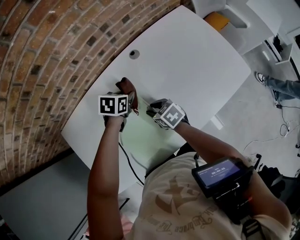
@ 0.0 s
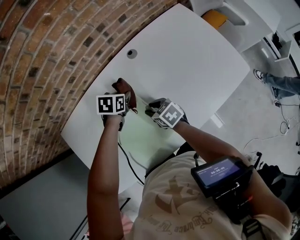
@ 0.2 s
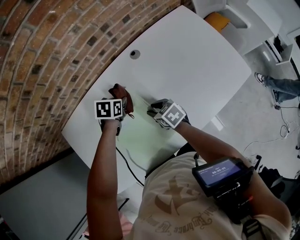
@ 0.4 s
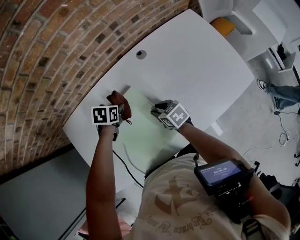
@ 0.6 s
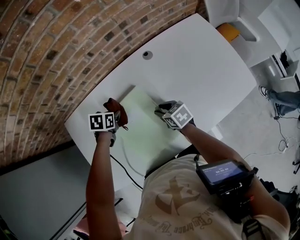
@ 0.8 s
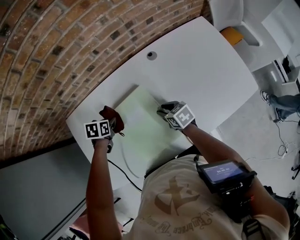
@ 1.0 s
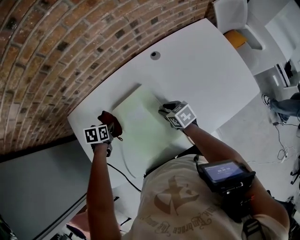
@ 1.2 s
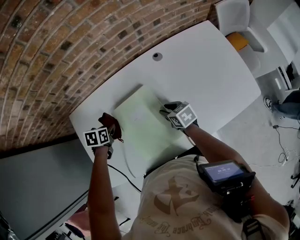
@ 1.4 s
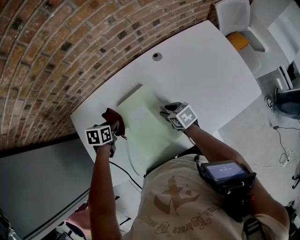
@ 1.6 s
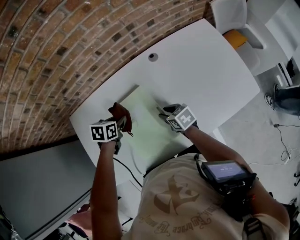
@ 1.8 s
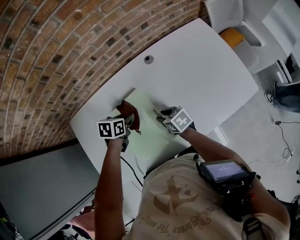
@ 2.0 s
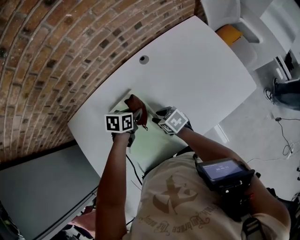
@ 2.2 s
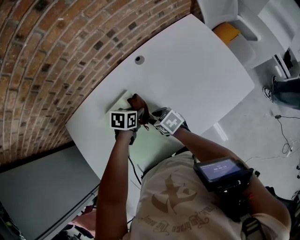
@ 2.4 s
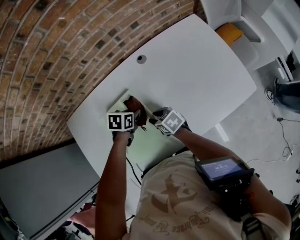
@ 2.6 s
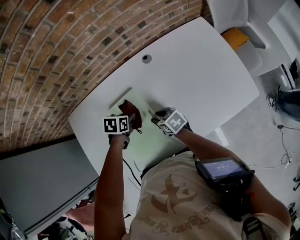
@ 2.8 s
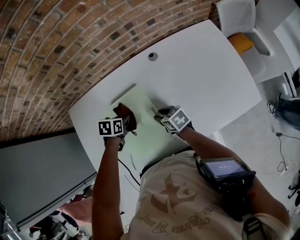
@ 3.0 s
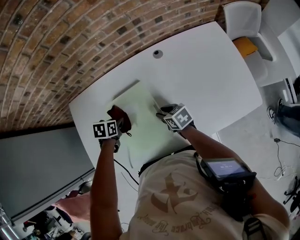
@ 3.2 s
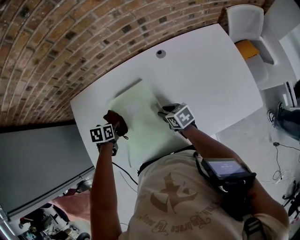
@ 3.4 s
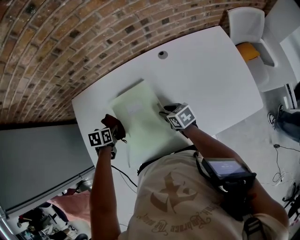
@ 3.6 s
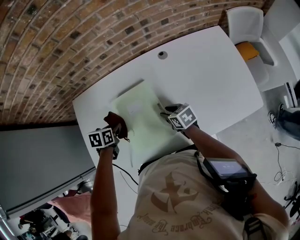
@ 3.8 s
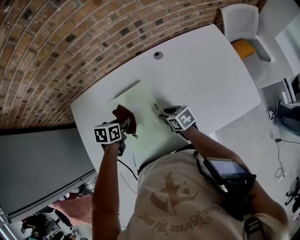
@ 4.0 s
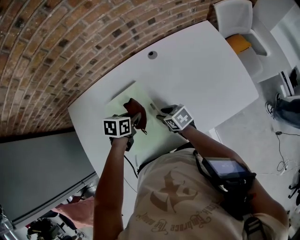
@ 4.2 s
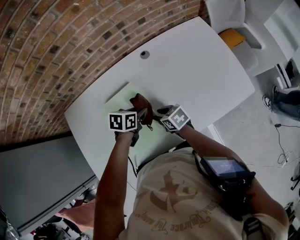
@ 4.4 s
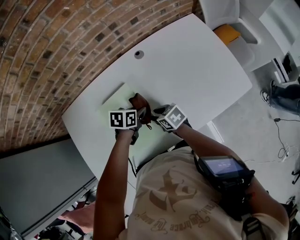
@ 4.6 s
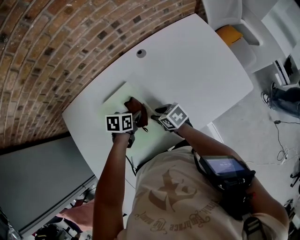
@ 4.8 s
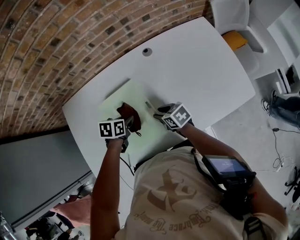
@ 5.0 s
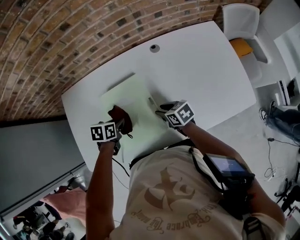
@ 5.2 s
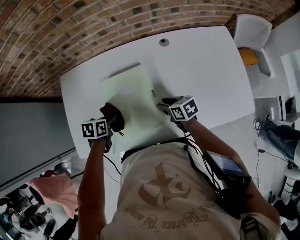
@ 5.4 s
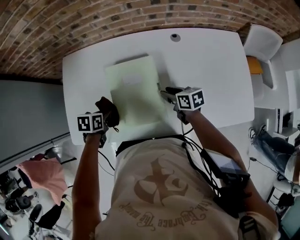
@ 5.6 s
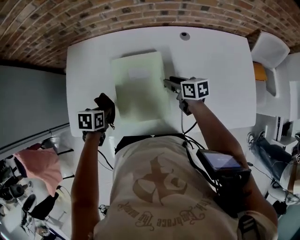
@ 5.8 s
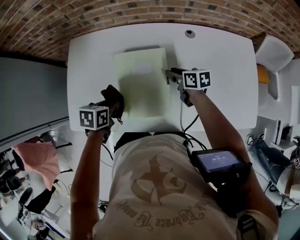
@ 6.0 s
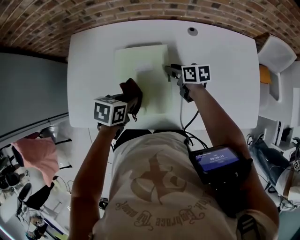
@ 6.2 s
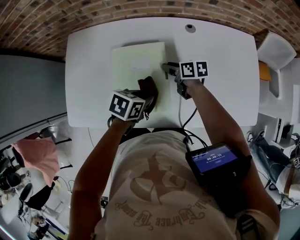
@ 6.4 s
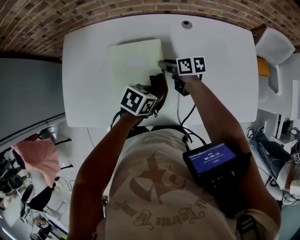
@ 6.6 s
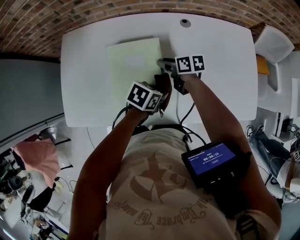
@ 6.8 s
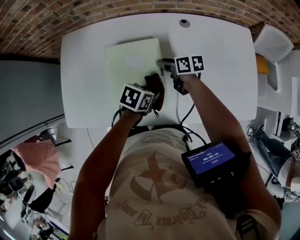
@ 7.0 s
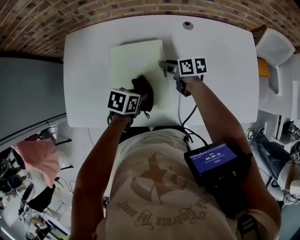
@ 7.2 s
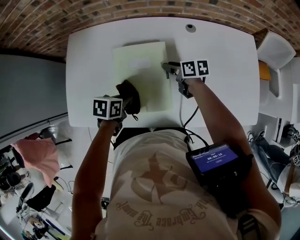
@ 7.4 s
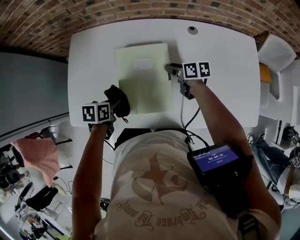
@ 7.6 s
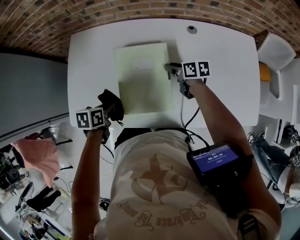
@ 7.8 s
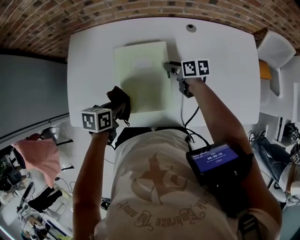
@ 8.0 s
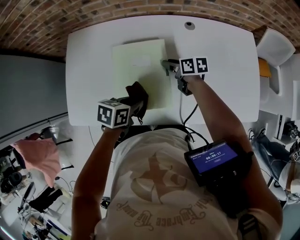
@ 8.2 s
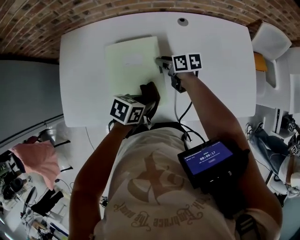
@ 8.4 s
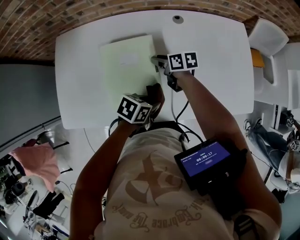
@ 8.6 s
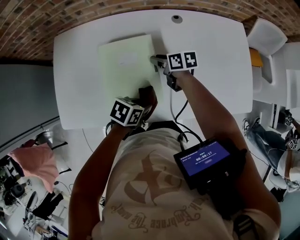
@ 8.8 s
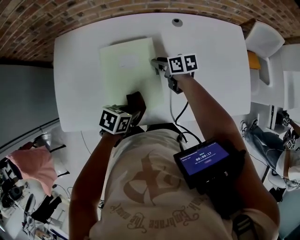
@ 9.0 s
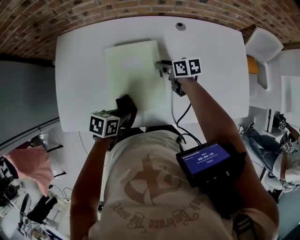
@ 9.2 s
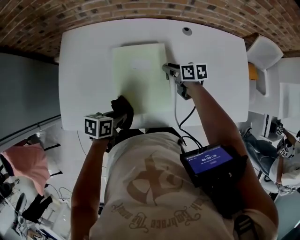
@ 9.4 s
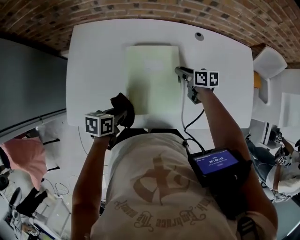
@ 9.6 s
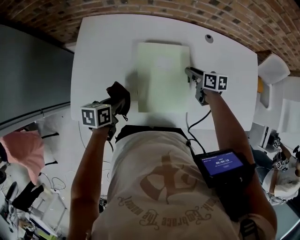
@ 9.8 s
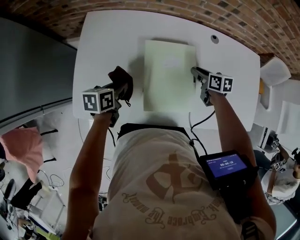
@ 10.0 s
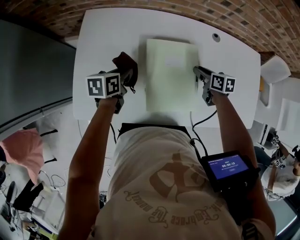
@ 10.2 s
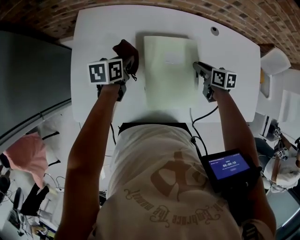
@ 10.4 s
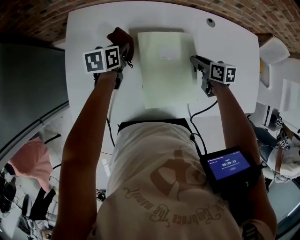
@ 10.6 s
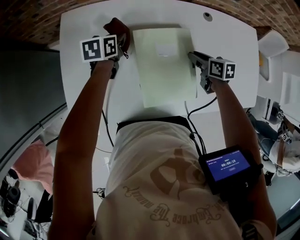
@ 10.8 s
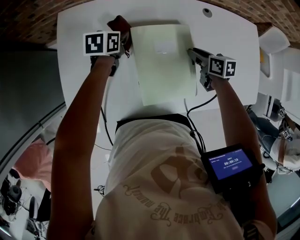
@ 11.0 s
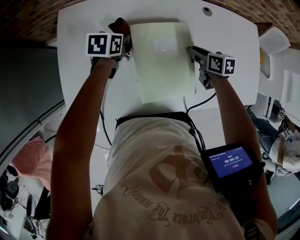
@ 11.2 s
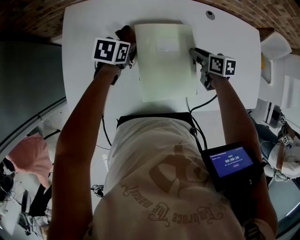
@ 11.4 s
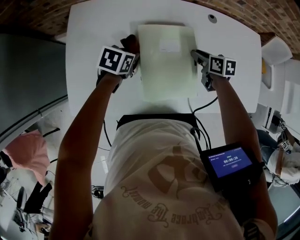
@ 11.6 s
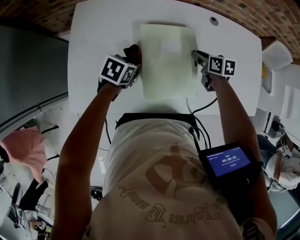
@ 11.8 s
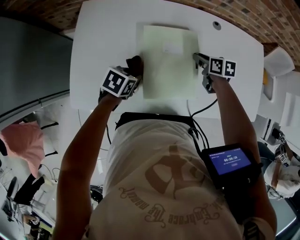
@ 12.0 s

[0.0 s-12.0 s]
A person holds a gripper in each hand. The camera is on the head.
0.0 to 1.6 s: The left gripper is displaced to the left and backward by some 20 cm, and turns by approximately 20 degrees.
3.0 to 4.4 s: The left gripper shifts by roughly 15 cm.
4.4 to 6.0 s: The left gripper moves roughly 20 cm, and swivels some 30 degrees. The right gripper shifts by roughly 10 cm.
7.6 to 9.0 s: The left gripper swivels some 30 degrees.
9.0 to 10.4 s: The left gripper shifts by about 30 cm, and changes its angle by roughly 30 degrees.
10.4 to 12.0 s: The left gripper is displaced backward and to the right by some 15 cm, and rotates about 30 degrees.

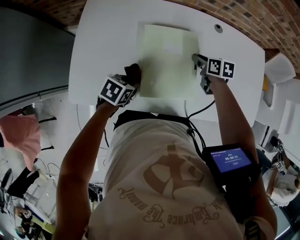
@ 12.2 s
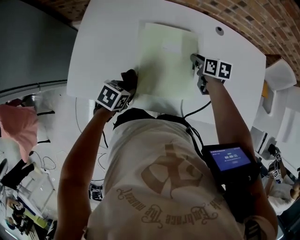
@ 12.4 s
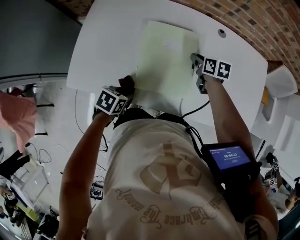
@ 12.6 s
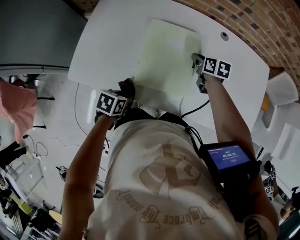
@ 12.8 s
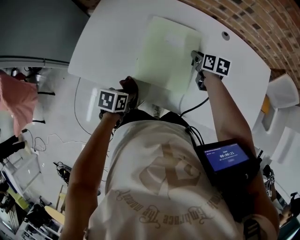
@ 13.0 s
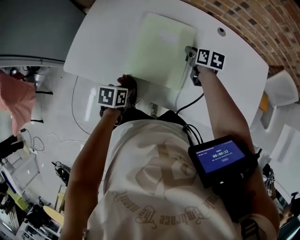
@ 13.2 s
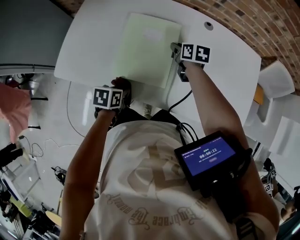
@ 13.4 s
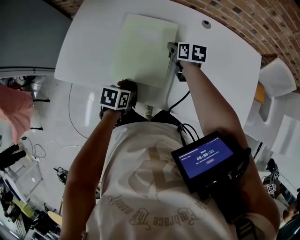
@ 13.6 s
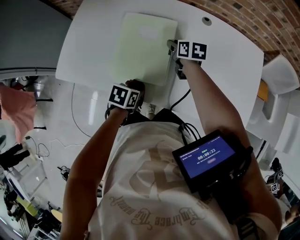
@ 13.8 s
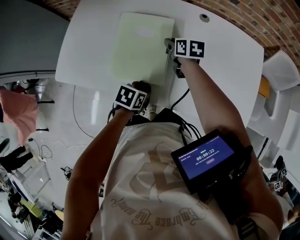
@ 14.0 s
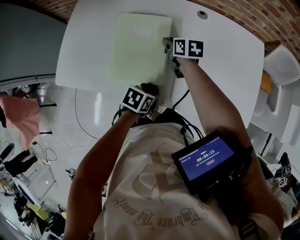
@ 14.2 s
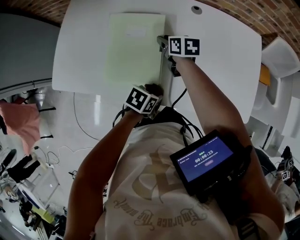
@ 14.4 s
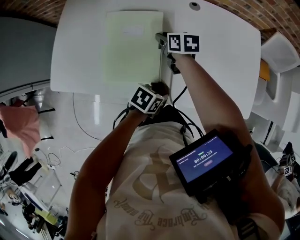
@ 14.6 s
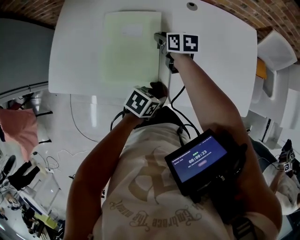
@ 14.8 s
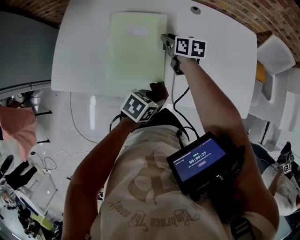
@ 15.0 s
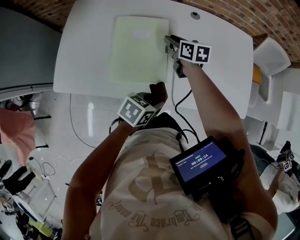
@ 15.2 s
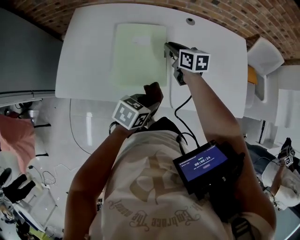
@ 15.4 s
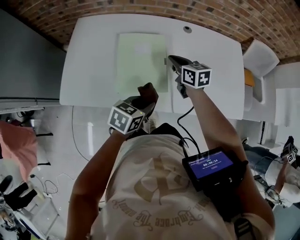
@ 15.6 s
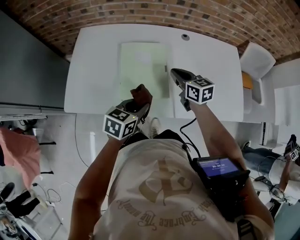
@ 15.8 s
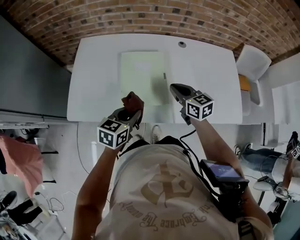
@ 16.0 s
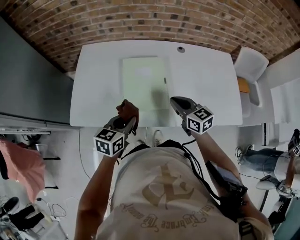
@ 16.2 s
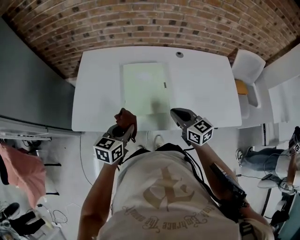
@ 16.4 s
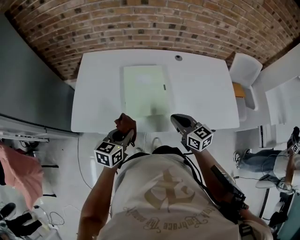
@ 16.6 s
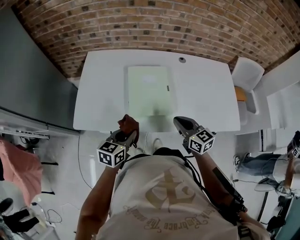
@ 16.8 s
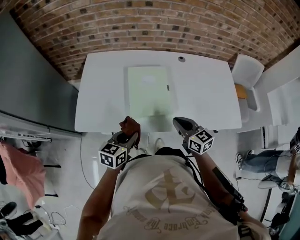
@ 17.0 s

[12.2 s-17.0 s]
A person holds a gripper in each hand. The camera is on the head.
12.2 to 13.8 s: The left gripper heads to the right and backward, covering some 20 cm, and swivels roughly 20 degrees.
13.8 to 15.4 s: Both grippers travel together upward, approximately 5 cm. The left gripper turns by some 30 degrees.
15.4 to 17.0 s: The right gripper travels backward by about 25 cm. The left gripper heads to the left, covering approximately 15 cm, and turns by about 20 degrees.

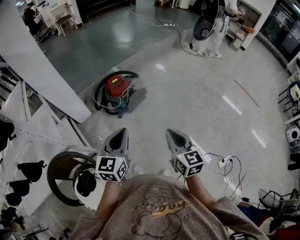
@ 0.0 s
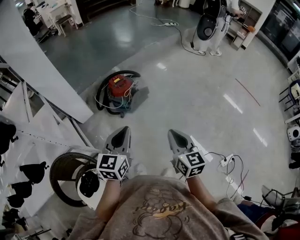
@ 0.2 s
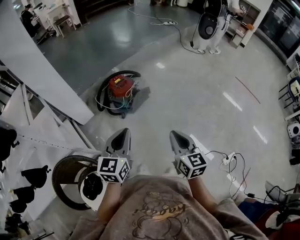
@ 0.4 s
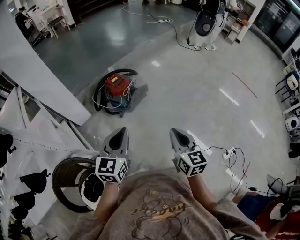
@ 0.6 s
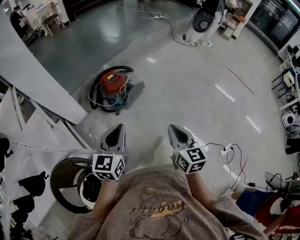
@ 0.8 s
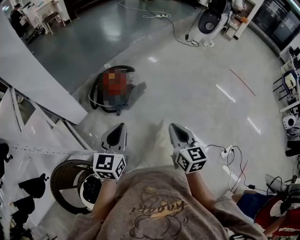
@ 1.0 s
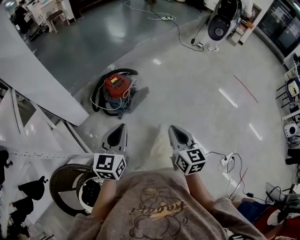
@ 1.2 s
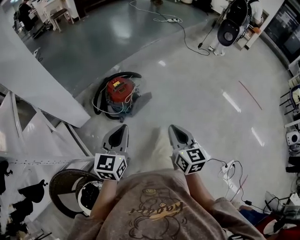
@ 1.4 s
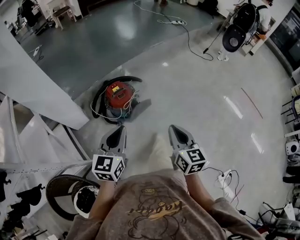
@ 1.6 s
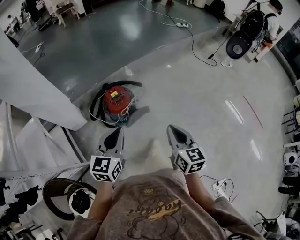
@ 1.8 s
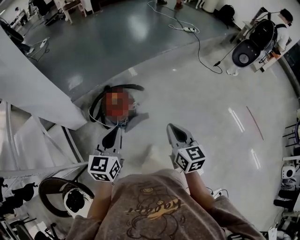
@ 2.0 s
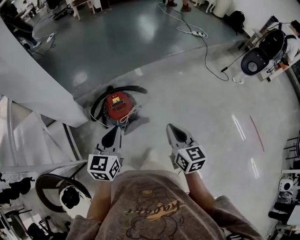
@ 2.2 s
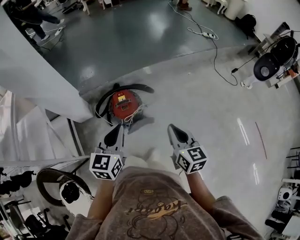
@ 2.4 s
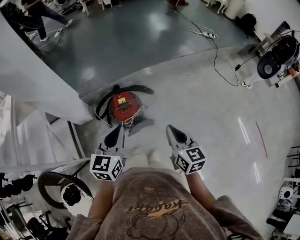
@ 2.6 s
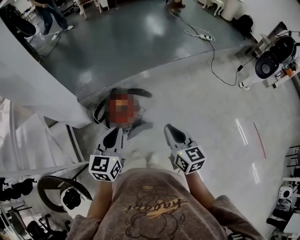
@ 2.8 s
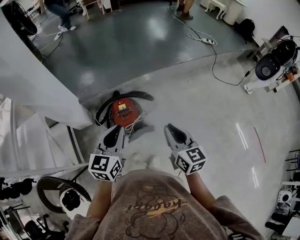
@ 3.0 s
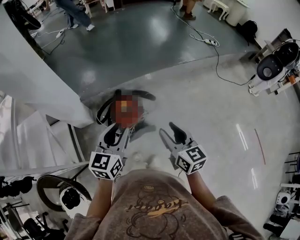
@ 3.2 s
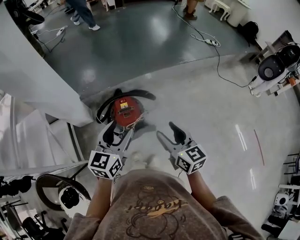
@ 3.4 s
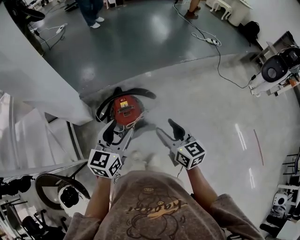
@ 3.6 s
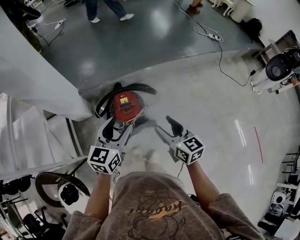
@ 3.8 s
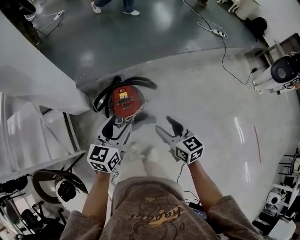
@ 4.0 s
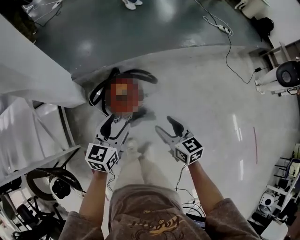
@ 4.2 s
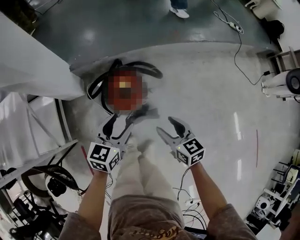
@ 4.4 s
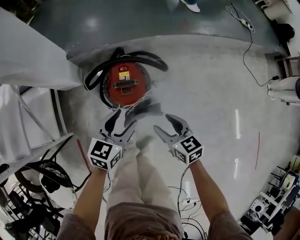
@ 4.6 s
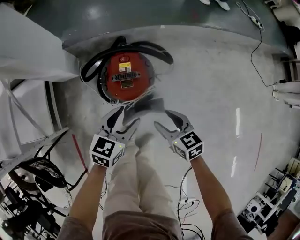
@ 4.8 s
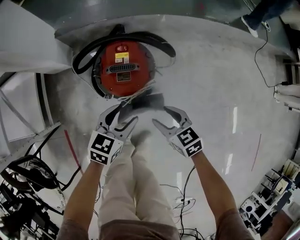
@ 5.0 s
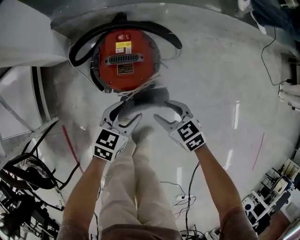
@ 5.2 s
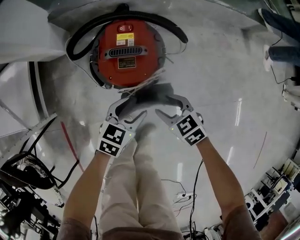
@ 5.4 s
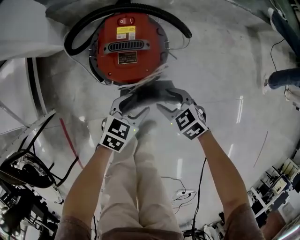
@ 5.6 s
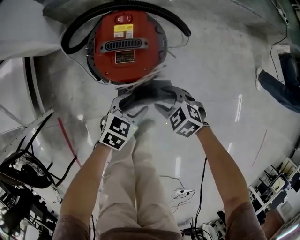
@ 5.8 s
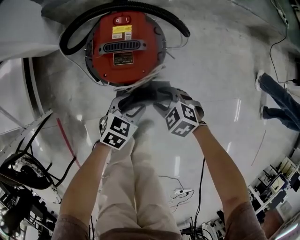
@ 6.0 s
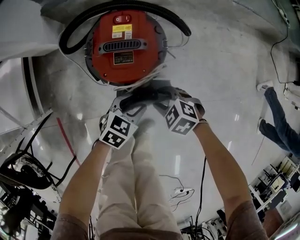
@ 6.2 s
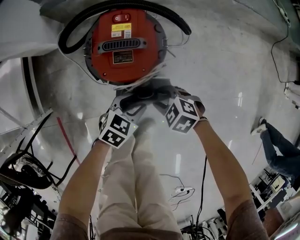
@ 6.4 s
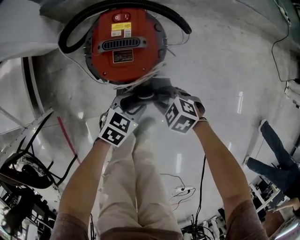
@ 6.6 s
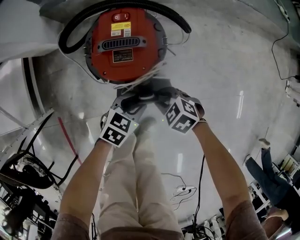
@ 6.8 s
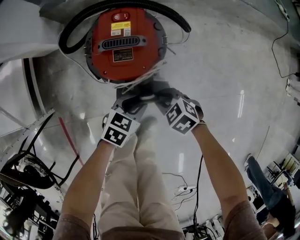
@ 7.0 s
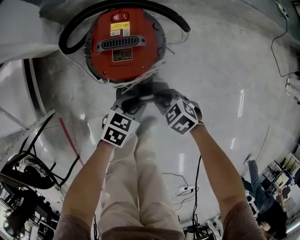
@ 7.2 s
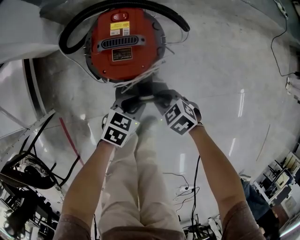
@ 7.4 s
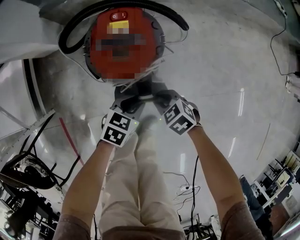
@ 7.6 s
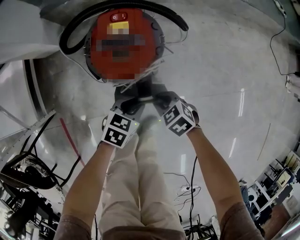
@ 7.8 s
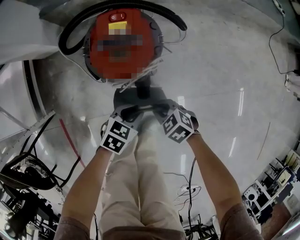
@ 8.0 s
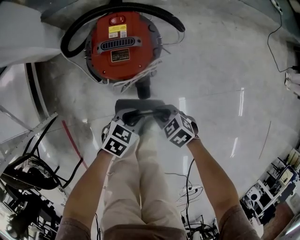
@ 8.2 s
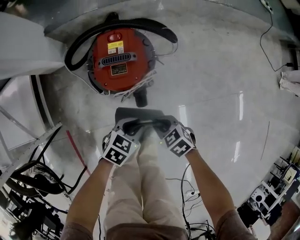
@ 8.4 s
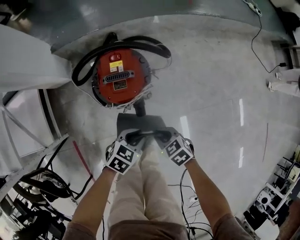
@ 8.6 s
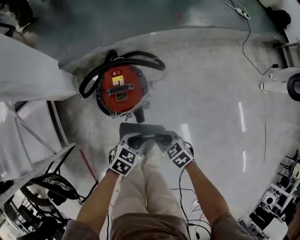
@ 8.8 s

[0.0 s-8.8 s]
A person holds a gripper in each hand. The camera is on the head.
0.0 to 1.4 s: Both grippers travel together forward, approximately 15 cm.
1.4 to 3.0 s: Both grippers move forward, some 25 cm. The right gripper swivels roughly 20 degrees.
3.0 to 4.4 s: The two grippers go roughly 20 cm downward. The right gripper rotates about 30 degrees, and opens up; the left gripper opens.
4.4 to 5.8 s: Both grippers move downward, roughly 35 cm. The right gripper rotates about 50 degrees, while the left gripper swivels about 30 degrees.
5.8 to 7.4 s: The left gripper closes. The right gripper closes its fingers.
7.4 to 8.8 s: Both grippers move upward, some 20 cm.
